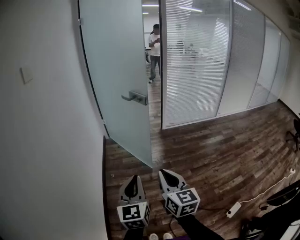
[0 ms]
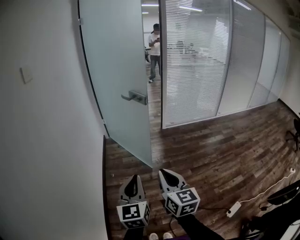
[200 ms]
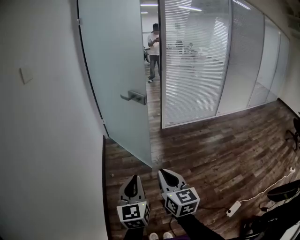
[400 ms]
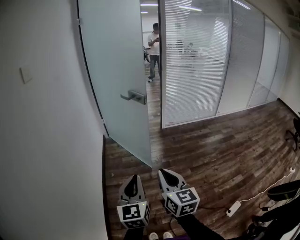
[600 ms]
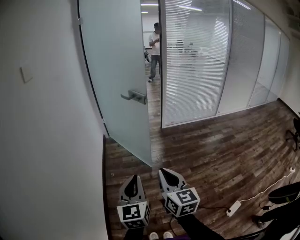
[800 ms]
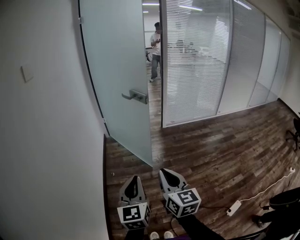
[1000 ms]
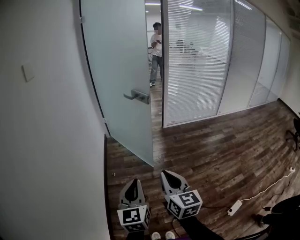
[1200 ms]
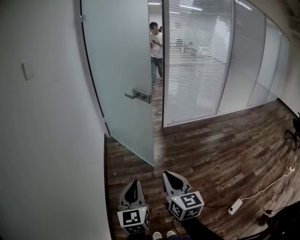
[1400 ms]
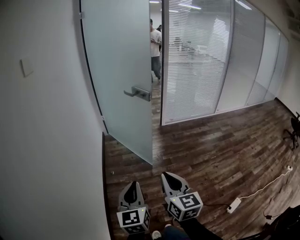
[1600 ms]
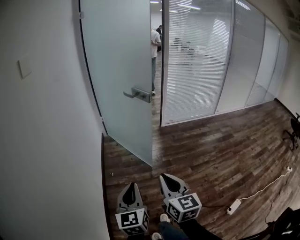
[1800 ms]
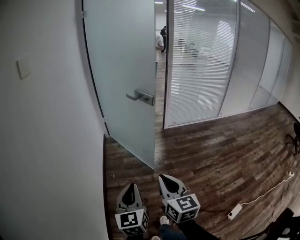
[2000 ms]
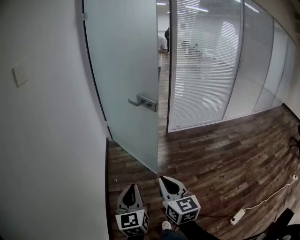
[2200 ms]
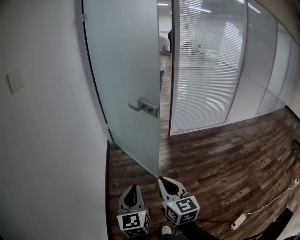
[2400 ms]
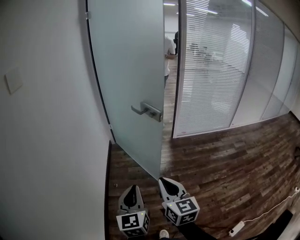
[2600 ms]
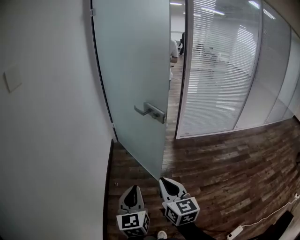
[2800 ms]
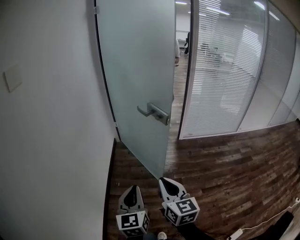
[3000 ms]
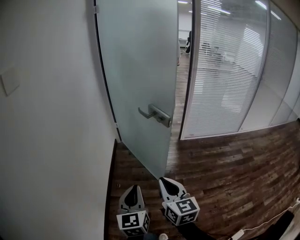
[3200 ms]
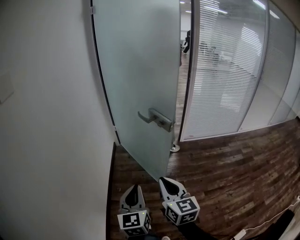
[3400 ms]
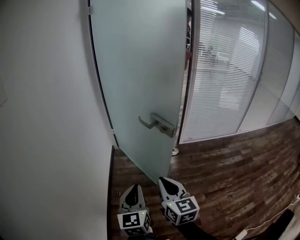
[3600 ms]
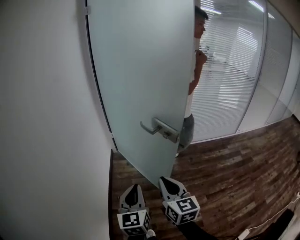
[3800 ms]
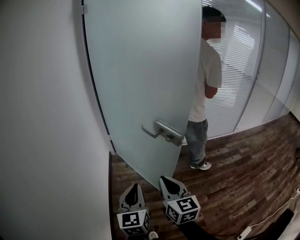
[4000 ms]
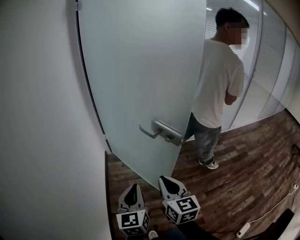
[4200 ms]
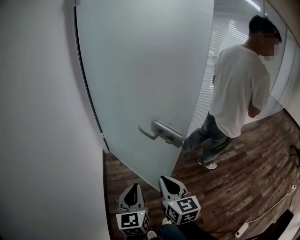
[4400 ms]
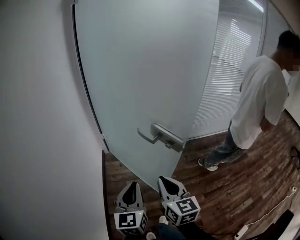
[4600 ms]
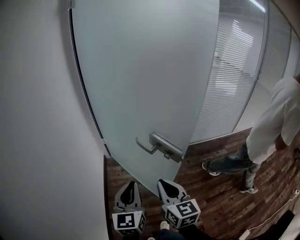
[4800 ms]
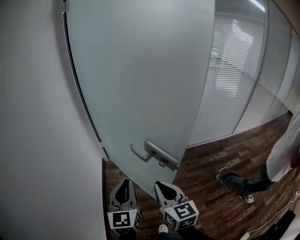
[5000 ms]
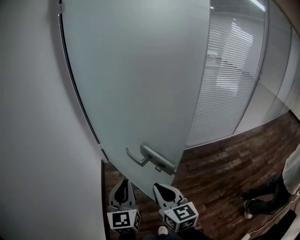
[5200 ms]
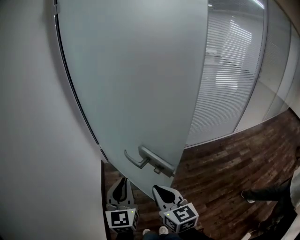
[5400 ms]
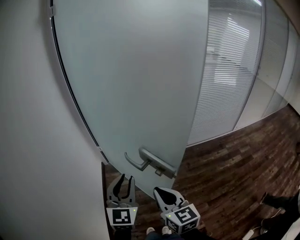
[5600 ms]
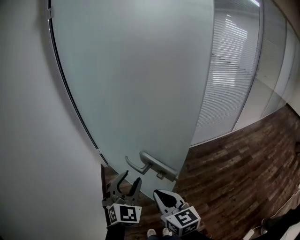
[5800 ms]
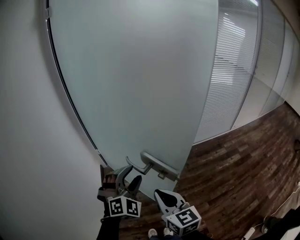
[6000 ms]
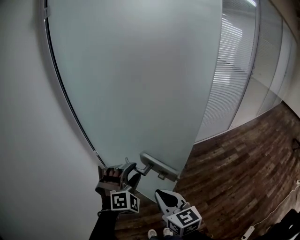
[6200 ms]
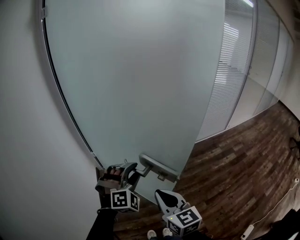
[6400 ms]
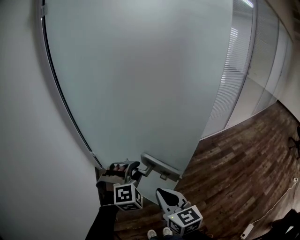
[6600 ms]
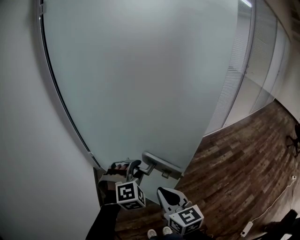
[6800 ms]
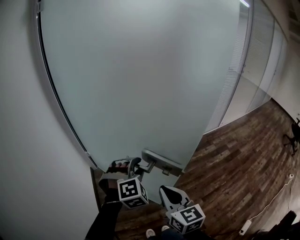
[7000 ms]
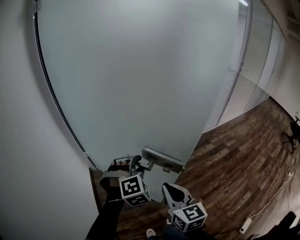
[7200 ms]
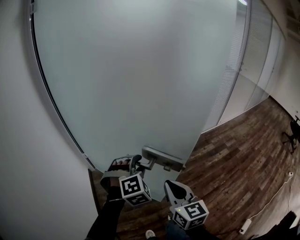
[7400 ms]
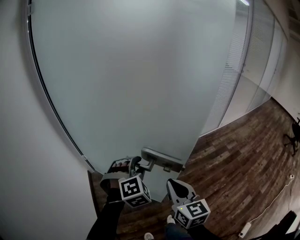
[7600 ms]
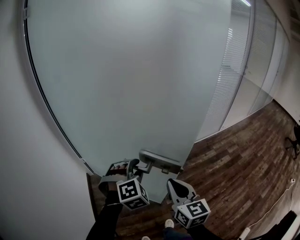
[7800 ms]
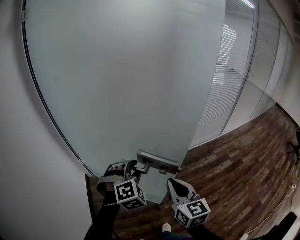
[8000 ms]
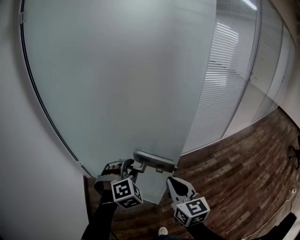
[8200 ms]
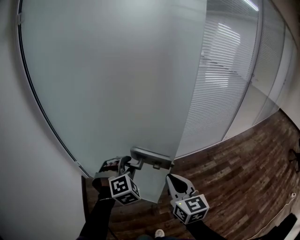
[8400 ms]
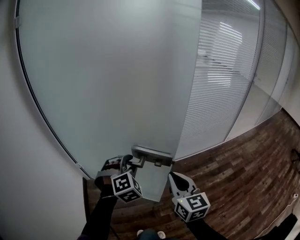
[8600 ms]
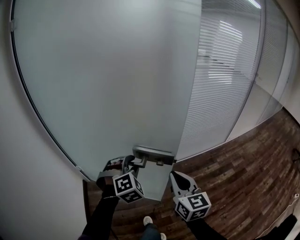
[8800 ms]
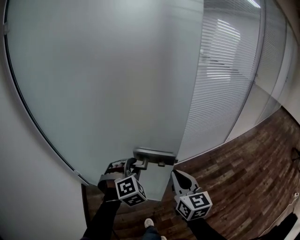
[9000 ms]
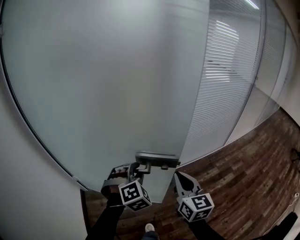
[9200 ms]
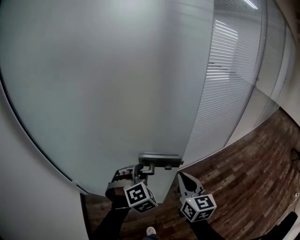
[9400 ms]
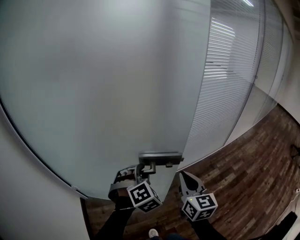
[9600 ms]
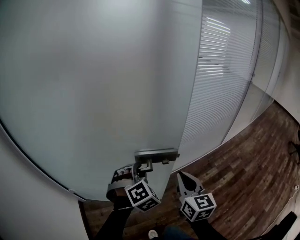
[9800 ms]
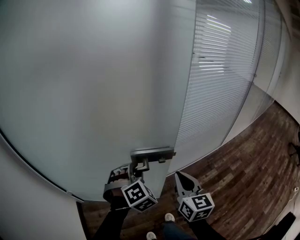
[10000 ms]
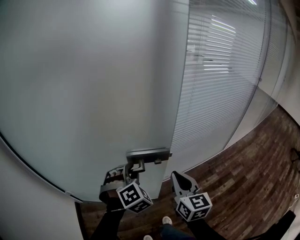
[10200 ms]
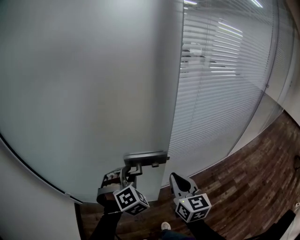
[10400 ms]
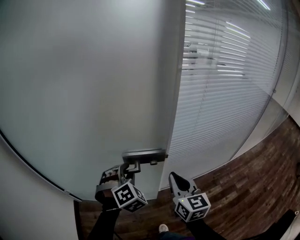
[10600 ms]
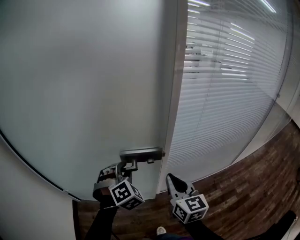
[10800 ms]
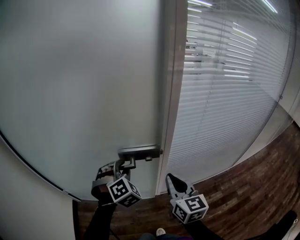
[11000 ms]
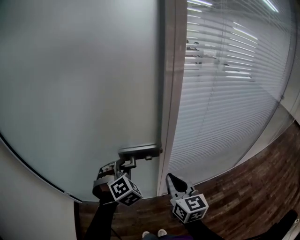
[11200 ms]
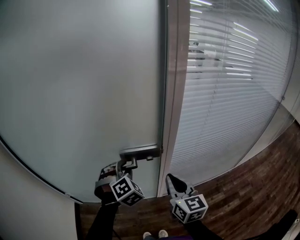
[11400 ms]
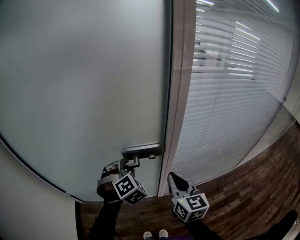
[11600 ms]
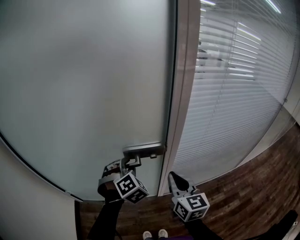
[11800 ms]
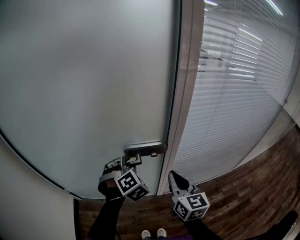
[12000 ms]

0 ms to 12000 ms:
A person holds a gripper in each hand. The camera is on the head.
0 ms to 1600 ms: The left gripper is displaced to the left by approximately 5 cm.
1600 ms to 3000 ms: The two grippers go about 20 cm forward.
3000 ms to 4400 ms: Both grippers move forward, approximately 20 cm.
4400 ms to 6000 ms: The right gripper goes some 10 cm forward, while the left gripper is displaced forward and to the right by some 20 cm, rolls clockwise, seen from behind, by approximately 70 degrees, and opens its fingers.
6000 ms to 7600 ms: The two grippers go roughly 10 cm forward and to the right.
7600 ms to 9000 ms: Both grippers move forward and to the right, roughly 25 cm.
9000 ms to 10400 ms: The grippers both shift forward by about 25 cm.
10400 ms to 12000 ms: The two grippers go approximately 10 cm forward.

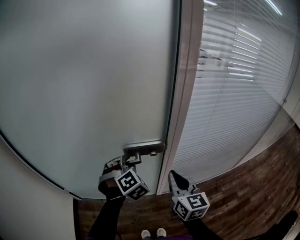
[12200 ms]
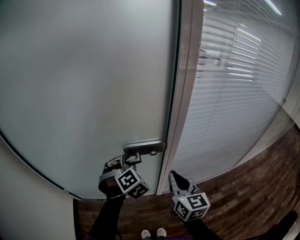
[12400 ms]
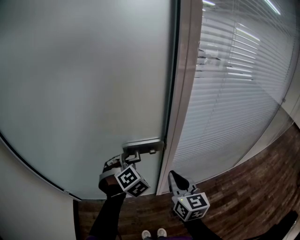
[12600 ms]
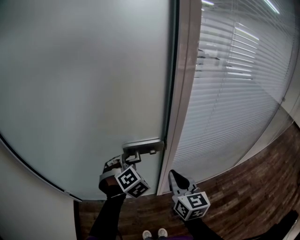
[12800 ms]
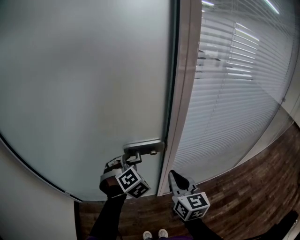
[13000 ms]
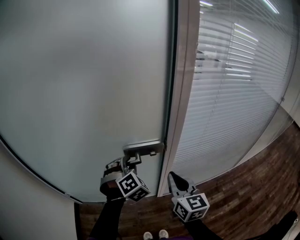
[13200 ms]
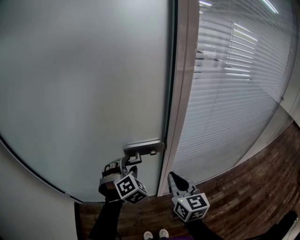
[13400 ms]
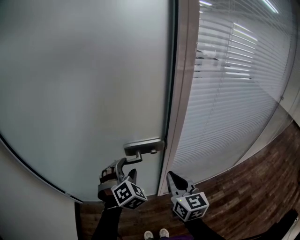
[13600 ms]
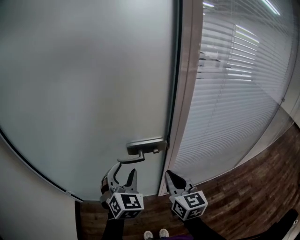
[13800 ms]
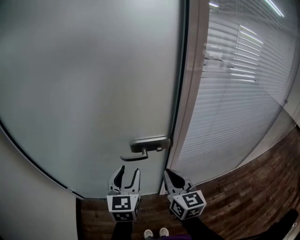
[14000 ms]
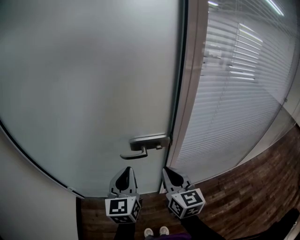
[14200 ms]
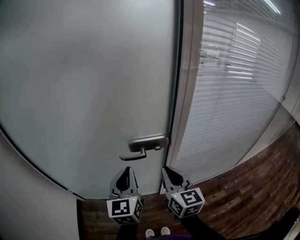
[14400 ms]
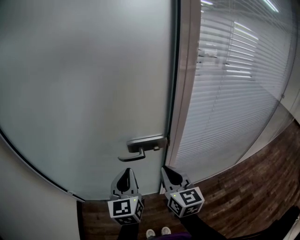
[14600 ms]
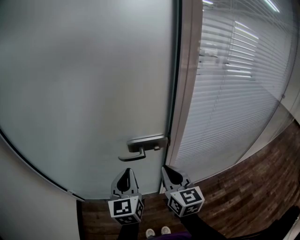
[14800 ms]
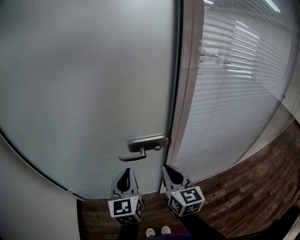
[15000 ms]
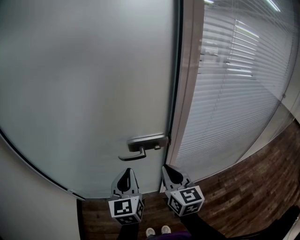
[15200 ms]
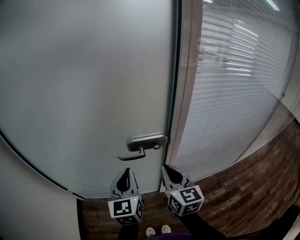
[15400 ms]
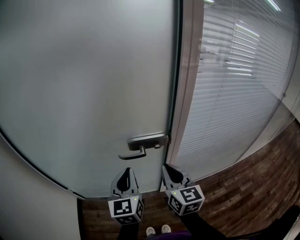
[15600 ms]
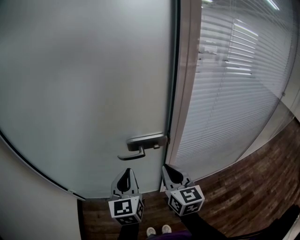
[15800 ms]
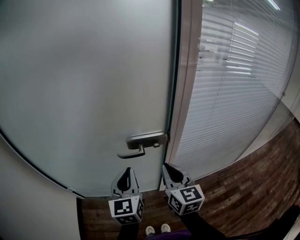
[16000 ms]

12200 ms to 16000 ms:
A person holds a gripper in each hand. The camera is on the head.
12200 ms to 13400 ms: The grippers stay close to where they were, moving slightly.
13400 ms to 14800 ms: The left gripper heads backward and upward, covering some 10 cm, twists roughly 60 degrees counterclockwise, seen from behind, and closes its fingers.
14800 ms to 16000 ms: Both grippers stay about where they are.

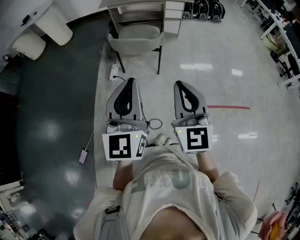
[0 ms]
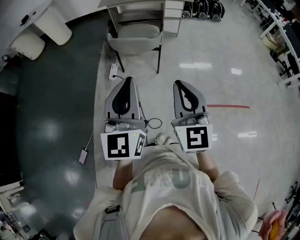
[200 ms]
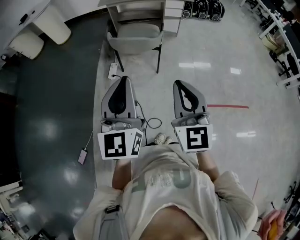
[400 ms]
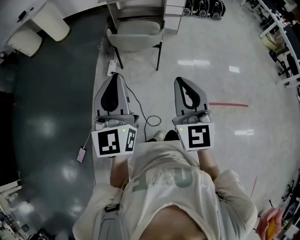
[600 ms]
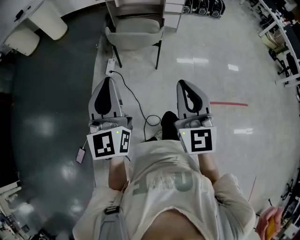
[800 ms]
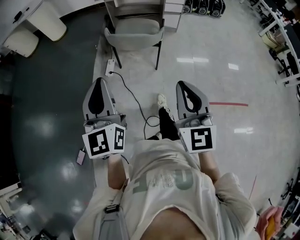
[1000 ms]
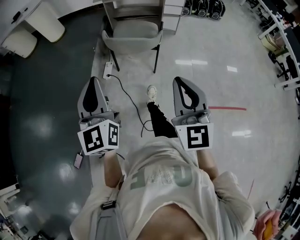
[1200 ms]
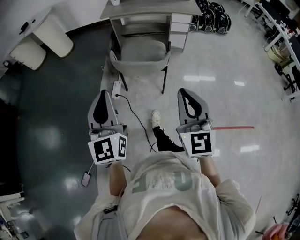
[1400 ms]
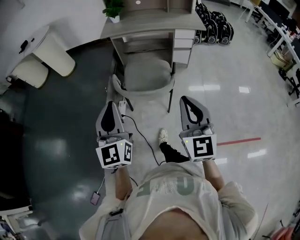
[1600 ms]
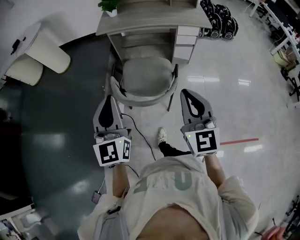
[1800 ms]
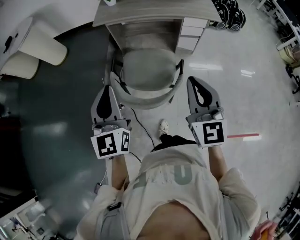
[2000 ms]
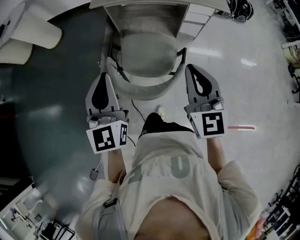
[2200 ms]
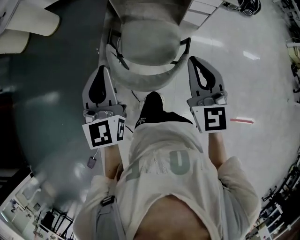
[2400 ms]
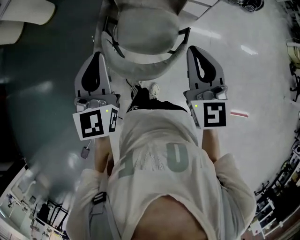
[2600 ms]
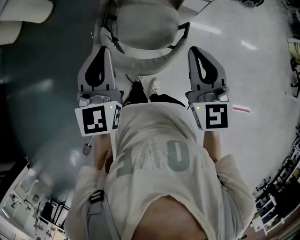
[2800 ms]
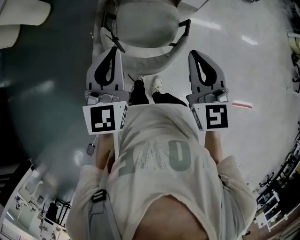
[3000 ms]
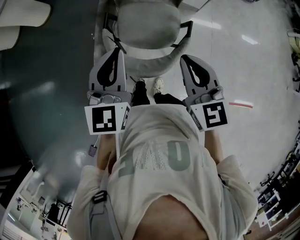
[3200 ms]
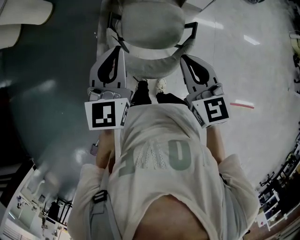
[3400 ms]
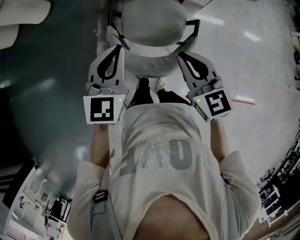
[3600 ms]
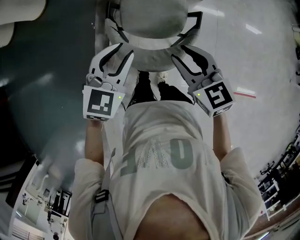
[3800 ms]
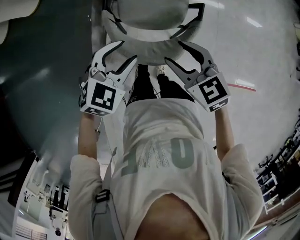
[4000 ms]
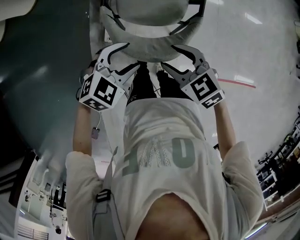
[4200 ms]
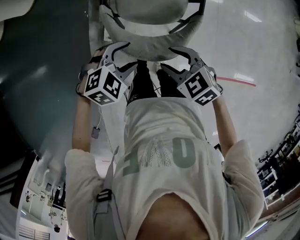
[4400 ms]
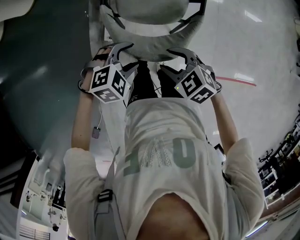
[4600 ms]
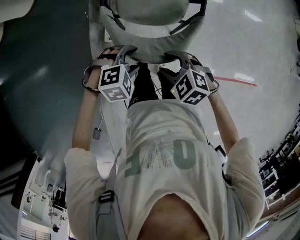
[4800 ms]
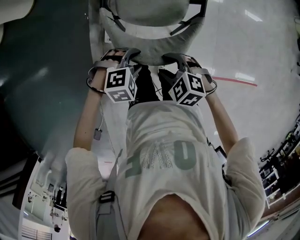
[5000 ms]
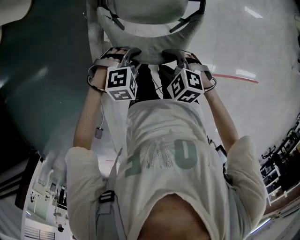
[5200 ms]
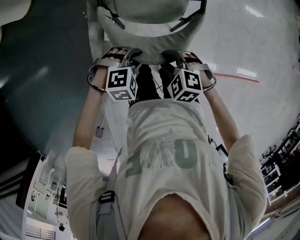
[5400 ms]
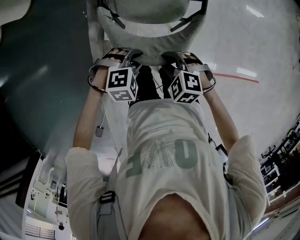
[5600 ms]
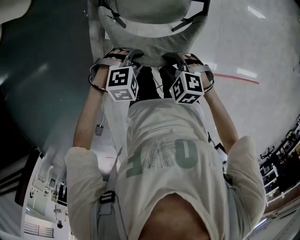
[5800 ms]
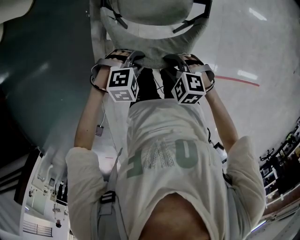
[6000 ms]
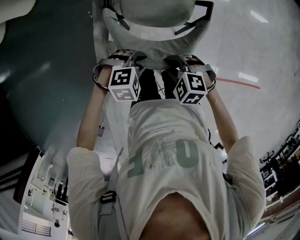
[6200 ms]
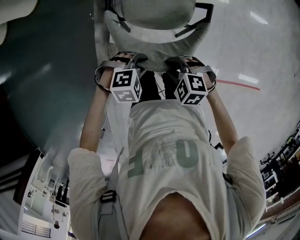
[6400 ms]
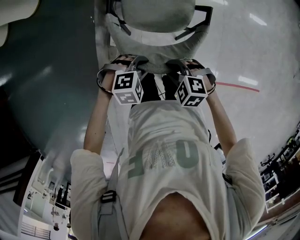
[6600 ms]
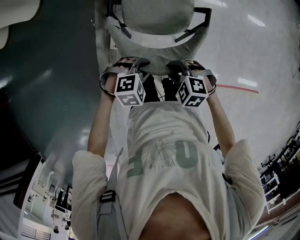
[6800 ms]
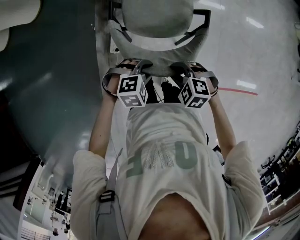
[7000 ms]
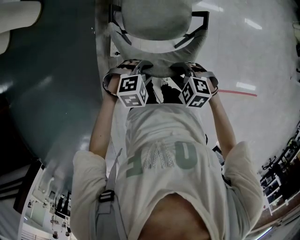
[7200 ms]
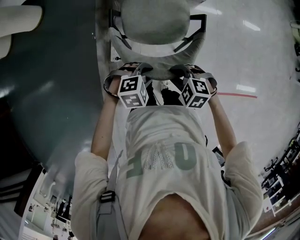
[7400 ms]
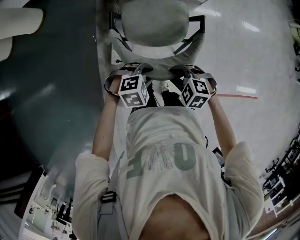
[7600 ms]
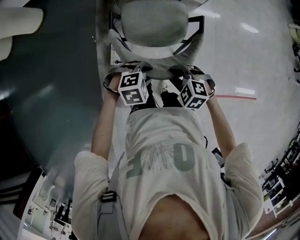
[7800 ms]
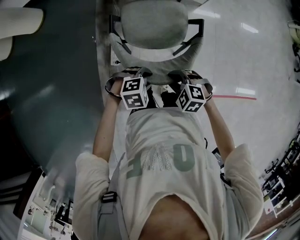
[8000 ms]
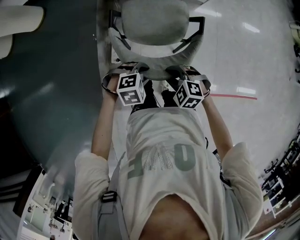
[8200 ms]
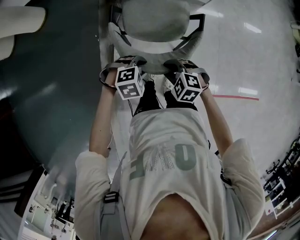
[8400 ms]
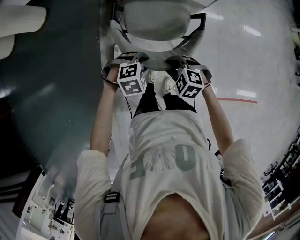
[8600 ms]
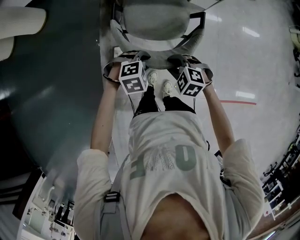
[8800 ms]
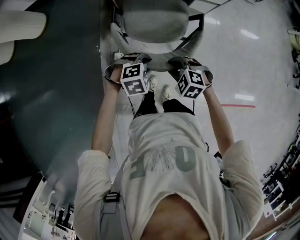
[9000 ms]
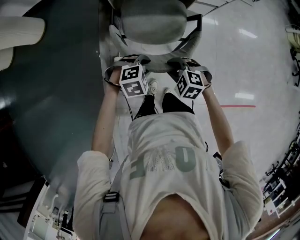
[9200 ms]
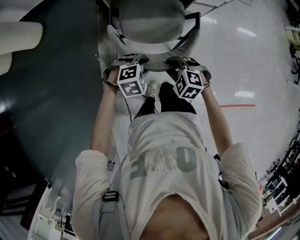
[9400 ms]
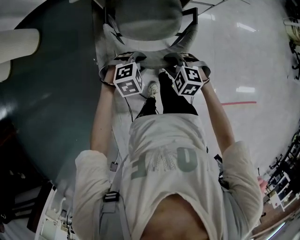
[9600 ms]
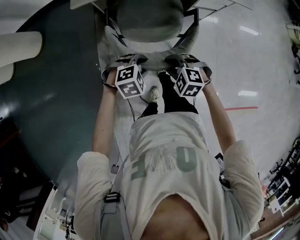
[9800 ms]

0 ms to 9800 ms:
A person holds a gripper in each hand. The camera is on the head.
0 ms to 1400 ms: The right gripper travels forward by approximately 15 cm, while the left gripper goes approximately 20 cm forward and to the left.
1400 ms to 2800 ms: Both grippers travel together forward, some 35 cm.
2800 ms to 4200 ms: The right gripper heads downward and to the left, covering about 25 cm, tips its fingers downward by some 30 degrees, and opens. The left gripper travels downward by some 20 cm, points its fingers about 40 degrees further downward, and opens its fingers.
4200 ms to 5600 ms: Both grippers travel together downward, some 10 cm. The left gripper changes its angle by approximately 30 degrees, and closes; the right gripper changes its angle by about 30 degrees, and closes its fingers.
5600 ms to 7000 ms: The grippers move only a little.
7000 ms to 8400 ms: The left gripper moves about 5 cm, while the right gripper ends up roughly 5 cm from where it was.
8400 ms to 9800 ms: The left gripper moves about 20 cm. Meanwhile the right gripper moves some 20 cm.
